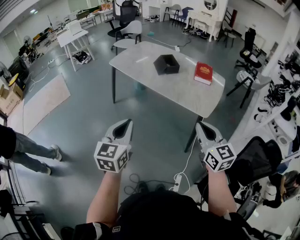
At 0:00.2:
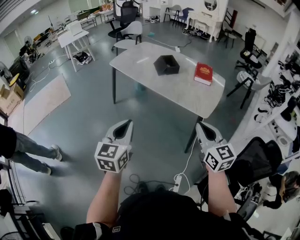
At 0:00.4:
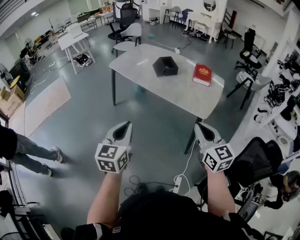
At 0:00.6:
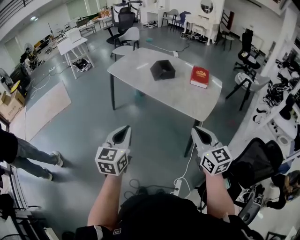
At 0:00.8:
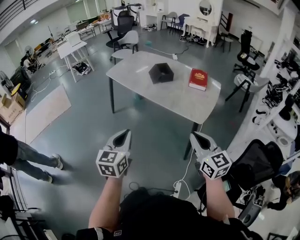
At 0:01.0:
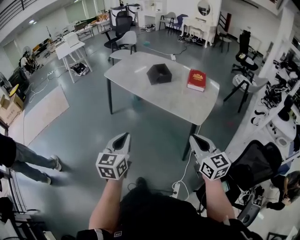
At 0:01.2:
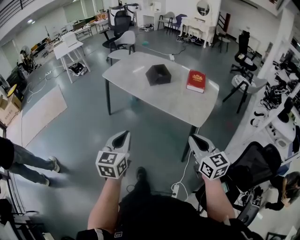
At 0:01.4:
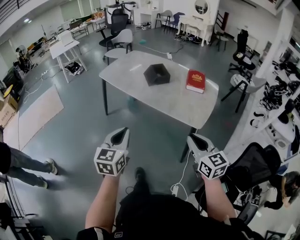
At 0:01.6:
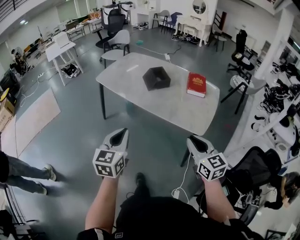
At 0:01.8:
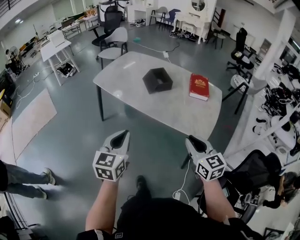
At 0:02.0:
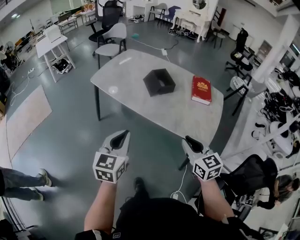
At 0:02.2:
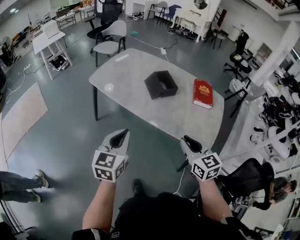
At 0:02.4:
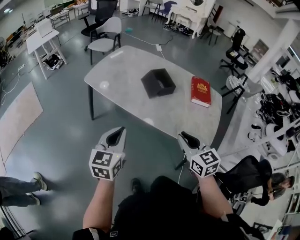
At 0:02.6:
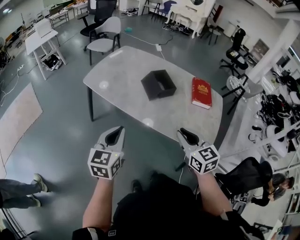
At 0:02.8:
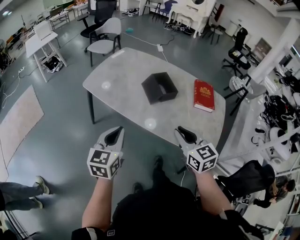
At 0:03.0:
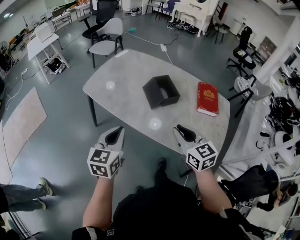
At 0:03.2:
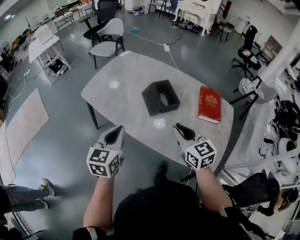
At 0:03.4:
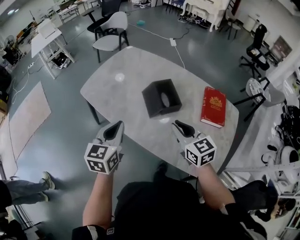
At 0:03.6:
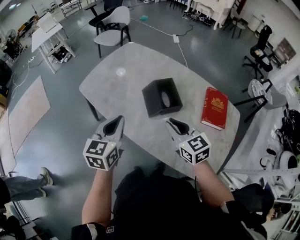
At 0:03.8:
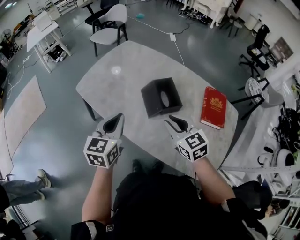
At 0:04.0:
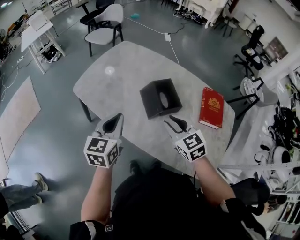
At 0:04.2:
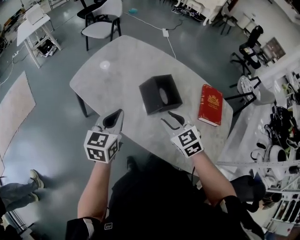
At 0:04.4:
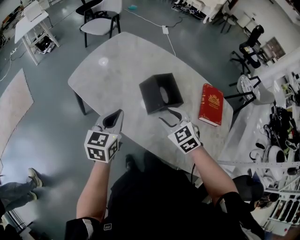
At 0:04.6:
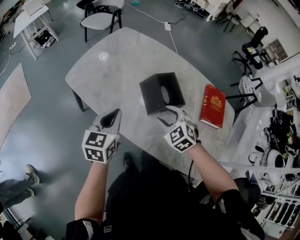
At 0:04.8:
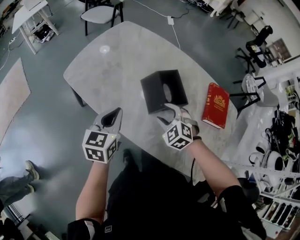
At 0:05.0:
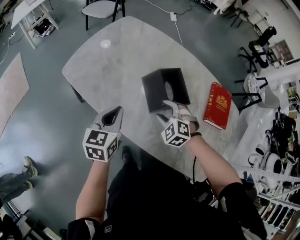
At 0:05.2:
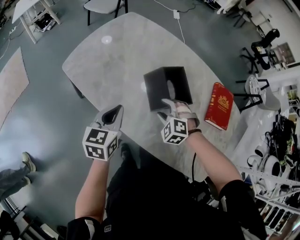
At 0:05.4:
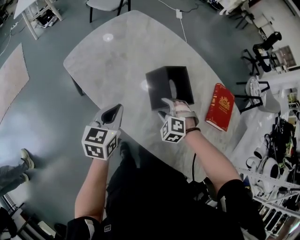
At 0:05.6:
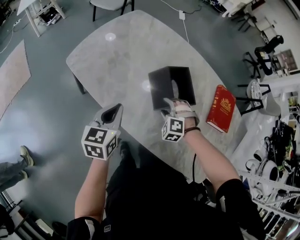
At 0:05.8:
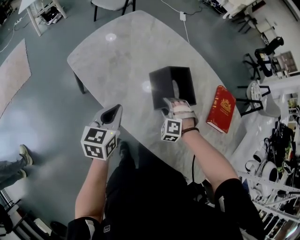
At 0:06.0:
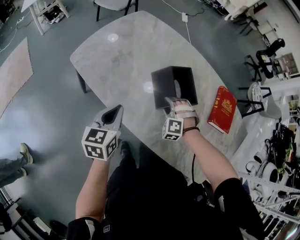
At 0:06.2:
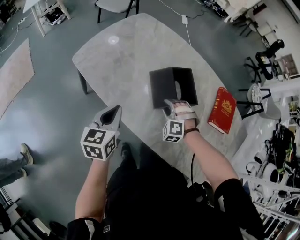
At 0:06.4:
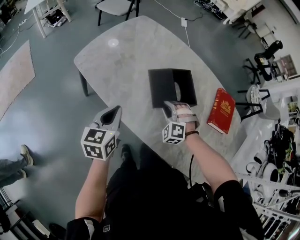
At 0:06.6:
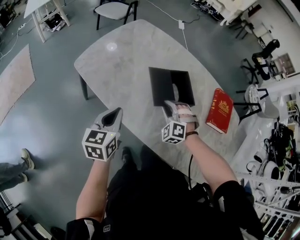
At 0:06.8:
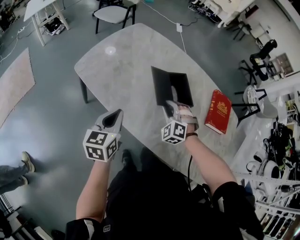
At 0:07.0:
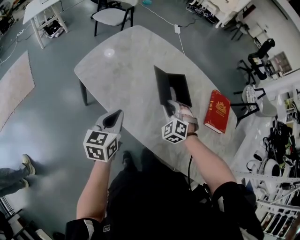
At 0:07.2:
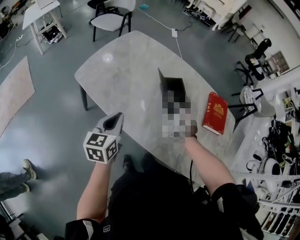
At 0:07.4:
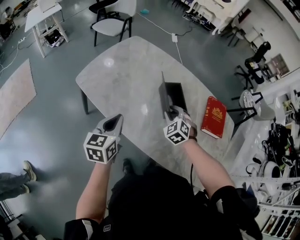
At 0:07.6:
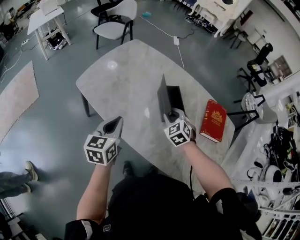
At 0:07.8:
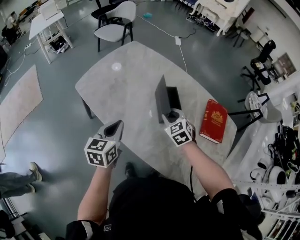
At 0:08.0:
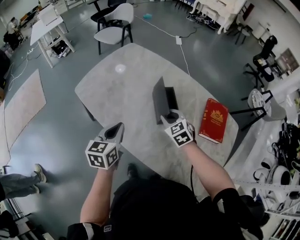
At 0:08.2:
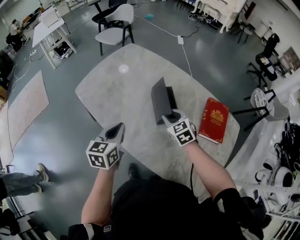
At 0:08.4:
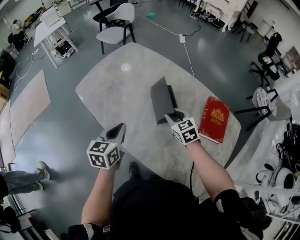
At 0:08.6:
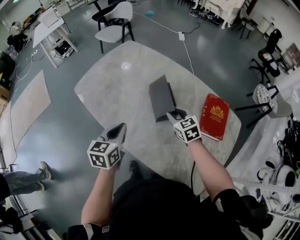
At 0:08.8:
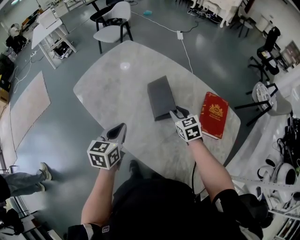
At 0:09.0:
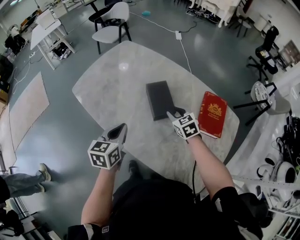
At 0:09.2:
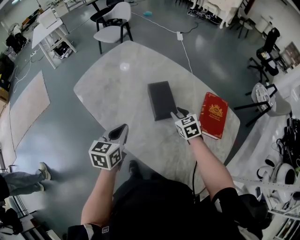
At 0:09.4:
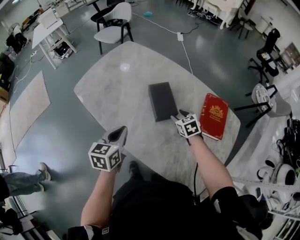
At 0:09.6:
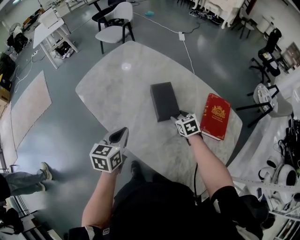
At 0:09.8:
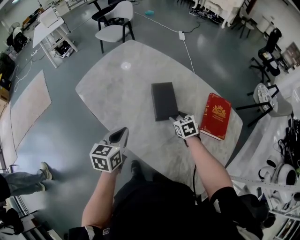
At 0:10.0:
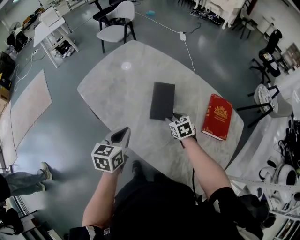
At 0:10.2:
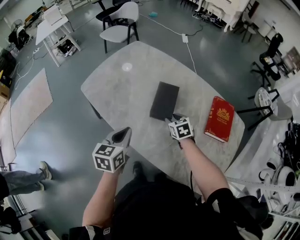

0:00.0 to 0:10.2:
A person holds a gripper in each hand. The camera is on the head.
0:00.0 to 0:01.4: The left gripper is displaced forward by some 10 cm. The right gripper changes place by roughly 10 cm.
0:01.4 to 0:03.0: The pair of grippers is taken forward, about 40 cm.
0:03.0 to 0:04.4: The left gripper heads forward, covering some 20 cm. The right gripper moves forward and downward, approximately 25 cm, swivels about 30 degrees, and opens its fingers.
0:04.4 to 0:05.8: The right gripper shifts approximately 20 cm downward and forward, and twists approximately 50 degrees counterclockwise, seen from behind. Meanwhile the left gripper heads downward, covering approximately 10 cm.
0:05.8 to 0:07.2: The right gripper travels upward by about 10 cm, rotates roughly 40 degrees, and closes its fingers. Meanwhile the left gripper goes about 5 cm upward.
0:07.2 to 0:08.8: The two grippers go some 15 cm to the right. The right gripper swivels some 40 degrees.
0:08.8 to 0:10.2: The left gripper ends up about 5 cm from where it was, while the right gripper travels to the left and downward by some 10 cm.

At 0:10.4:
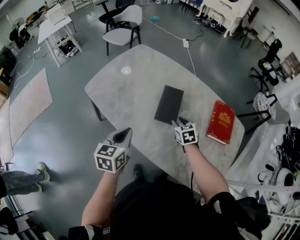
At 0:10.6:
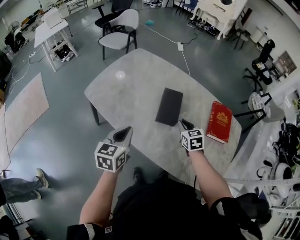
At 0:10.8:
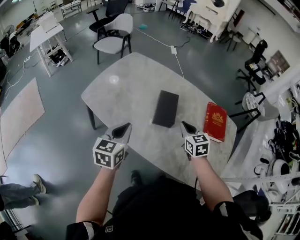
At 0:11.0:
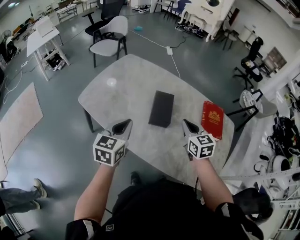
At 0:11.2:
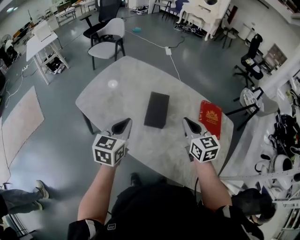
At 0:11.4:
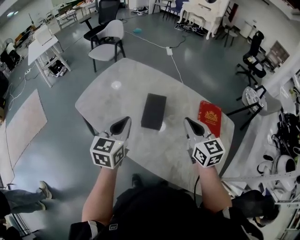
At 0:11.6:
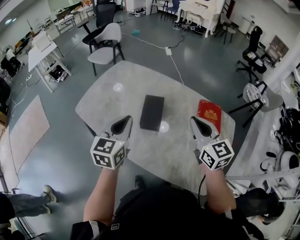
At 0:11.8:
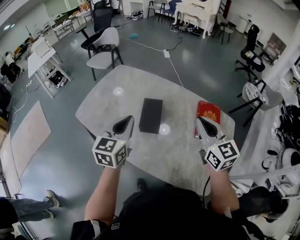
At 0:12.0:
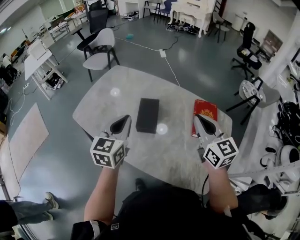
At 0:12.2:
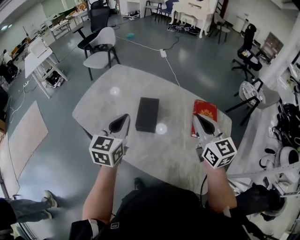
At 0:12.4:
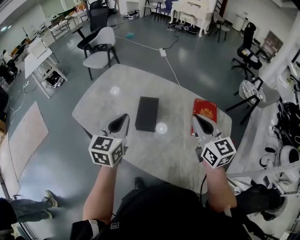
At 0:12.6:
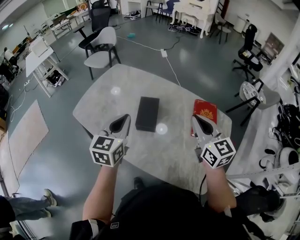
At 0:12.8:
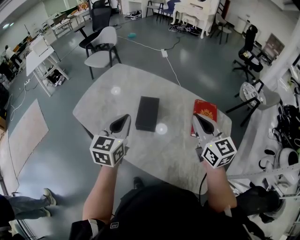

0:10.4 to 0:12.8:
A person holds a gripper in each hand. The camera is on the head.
0:10.4 to 0:11.6: The left gripper is displaced upward, to the right and forward by approximately 15 cm. Meanwhile the right gripper is displaced upward by about 30 cm, tilts its fingers some 40 degrees upward, and closes.
0:11.6 to 0:12.8: The grippers make only small movements.

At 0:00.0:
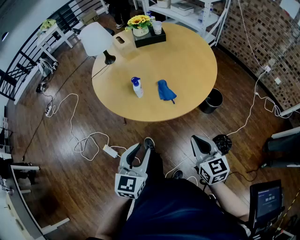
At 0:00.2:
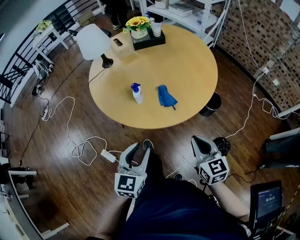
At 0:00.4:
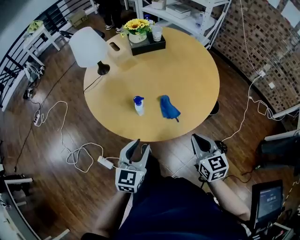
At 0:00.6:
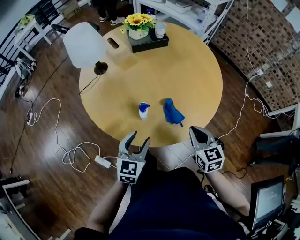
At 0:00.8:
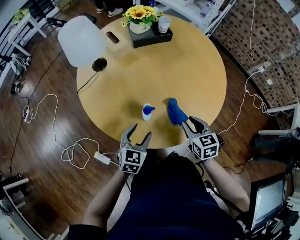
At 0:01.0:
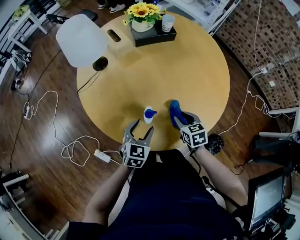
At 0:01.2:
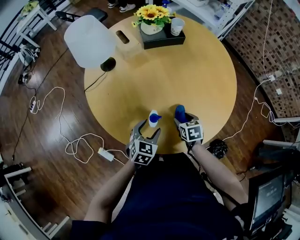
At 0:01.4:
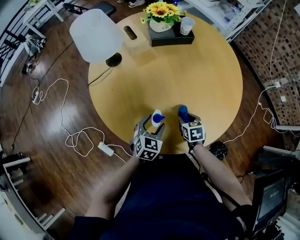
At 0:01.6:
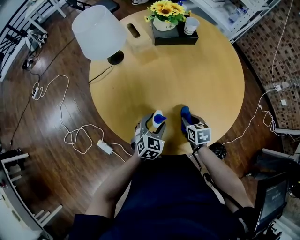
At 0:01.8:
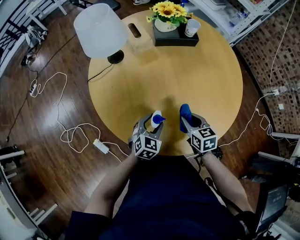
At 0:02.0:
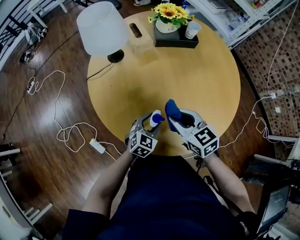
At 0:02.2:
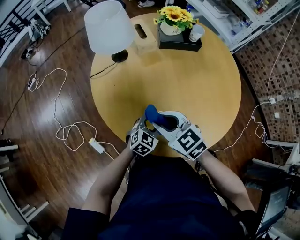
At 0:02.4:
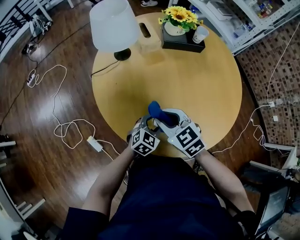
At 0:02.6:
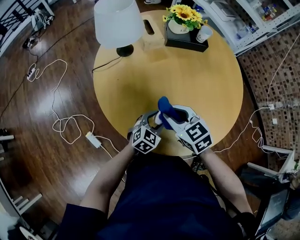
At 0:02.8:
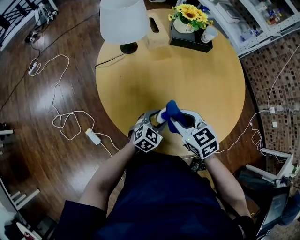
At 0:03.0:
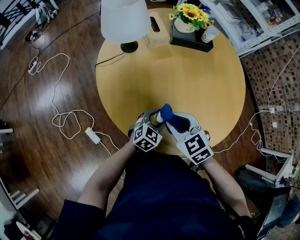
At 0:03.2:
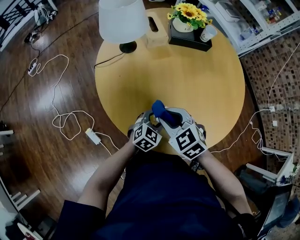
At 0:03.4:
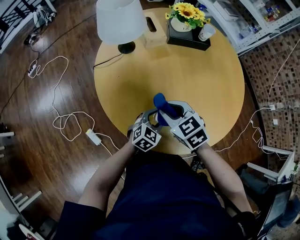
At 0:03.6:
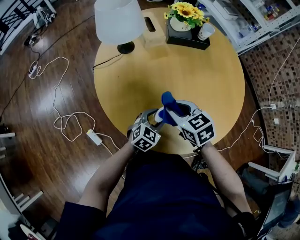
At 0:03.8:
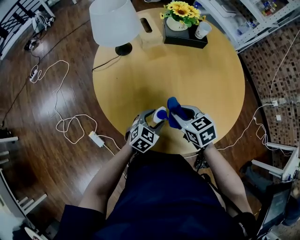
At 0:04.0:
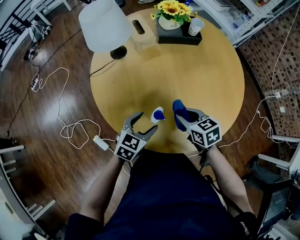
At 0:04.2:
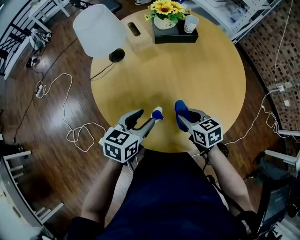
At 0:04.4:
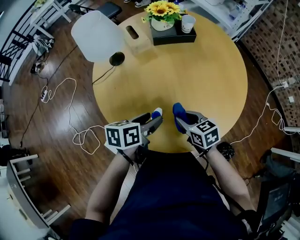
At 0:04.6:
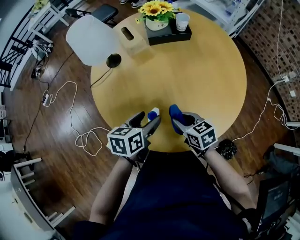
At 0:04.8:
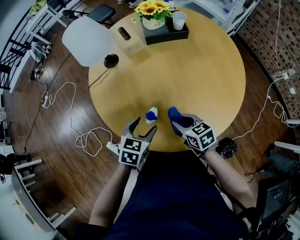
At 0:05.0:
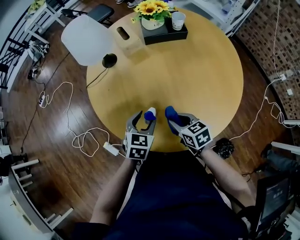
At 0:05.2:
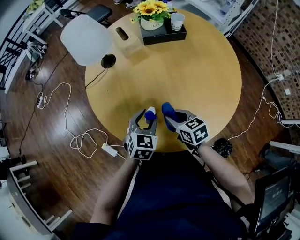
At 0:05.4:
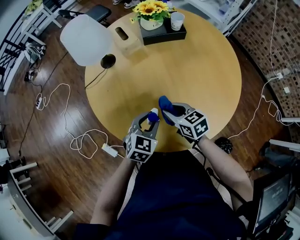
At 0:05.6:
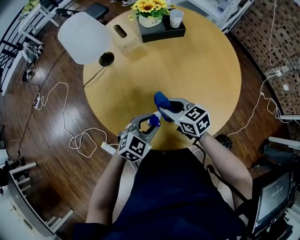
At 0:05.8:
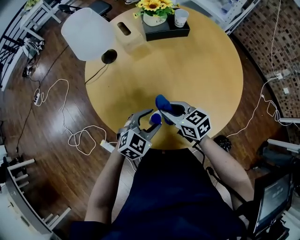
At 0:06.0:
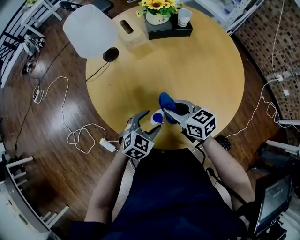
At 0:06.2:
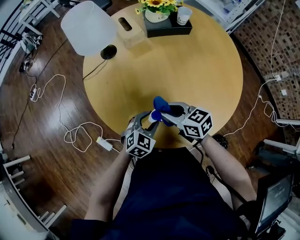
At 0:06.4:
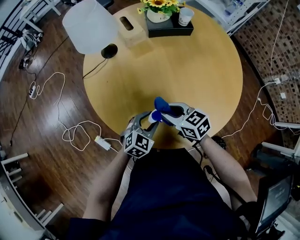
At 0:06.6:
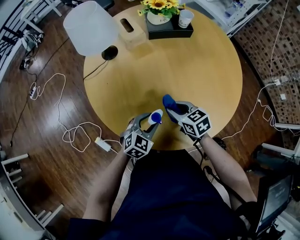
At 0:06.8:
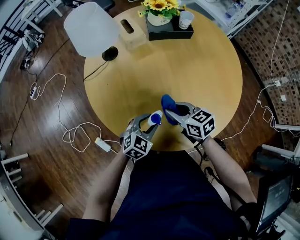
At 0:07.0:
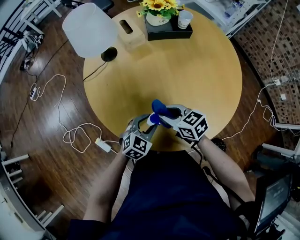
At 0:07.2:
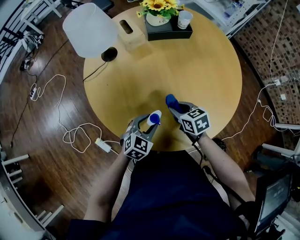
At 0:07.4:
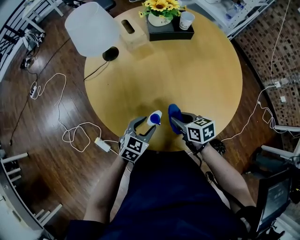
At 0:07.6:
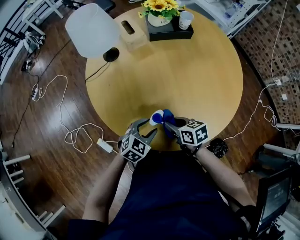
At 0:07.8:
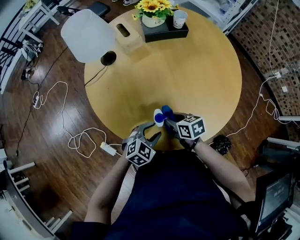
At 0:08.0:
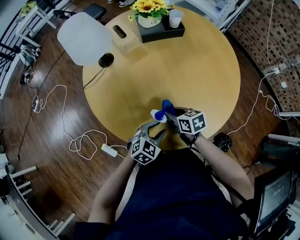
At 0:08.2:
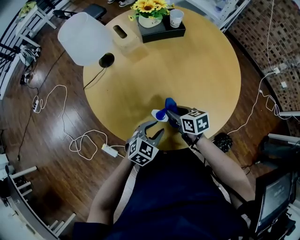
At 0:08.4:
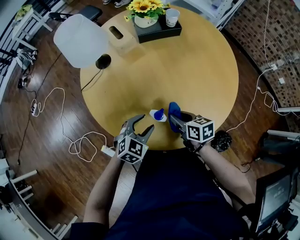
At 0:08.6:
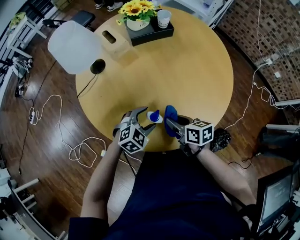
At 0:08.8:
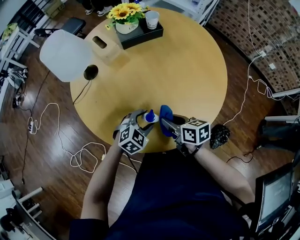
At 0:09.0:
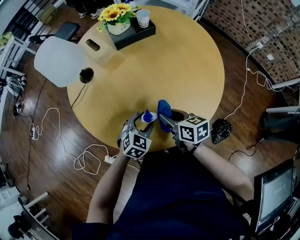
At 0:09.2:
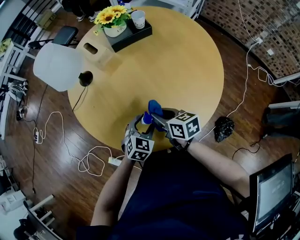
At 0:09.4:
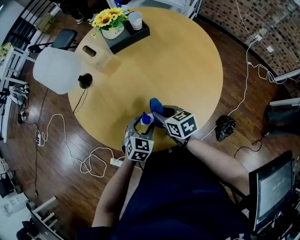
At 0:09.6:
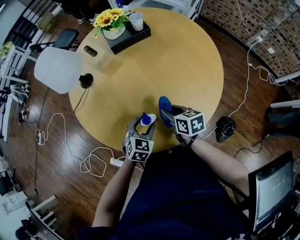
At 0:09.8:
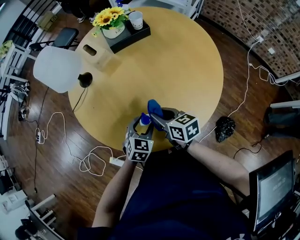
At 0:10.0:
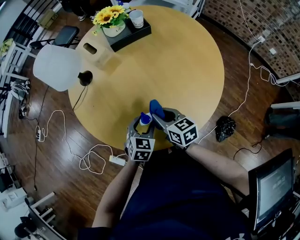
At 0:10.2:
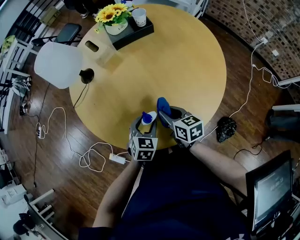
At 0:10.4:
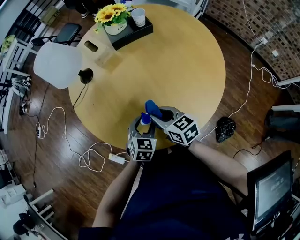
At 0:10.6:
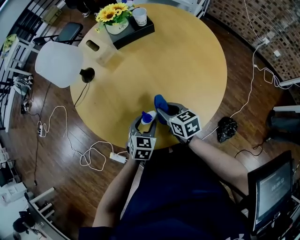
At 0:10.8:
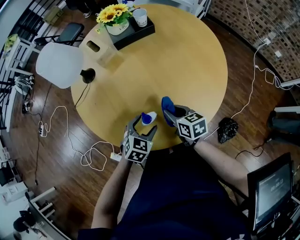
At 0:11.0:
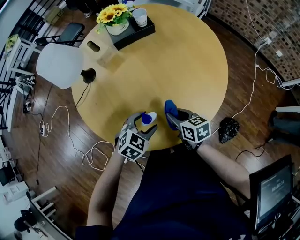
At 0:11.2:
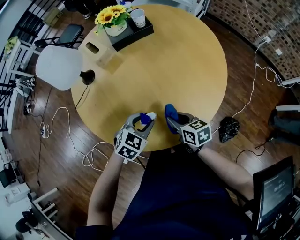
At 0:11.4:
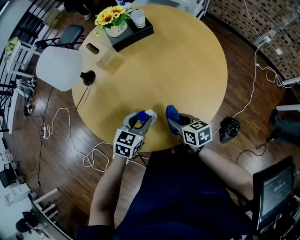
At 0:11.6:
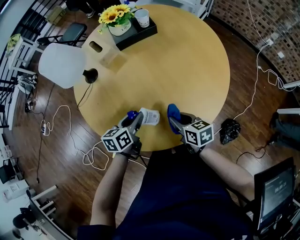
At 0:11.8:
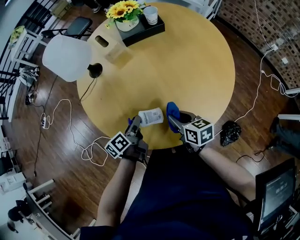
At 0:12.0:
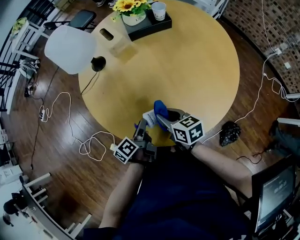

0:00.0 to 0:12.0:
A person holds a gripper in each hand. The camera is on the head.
0:00.0 to 0:01.6: Both grippers move forward and downward, about 40 cm. The left gripper swivels roughly 20 degrees, and opens. Meanwhile the right gripper tips its fingers downward by some 30 degrees, and opens up.
0:01.6 to 0:03.0: The right gripper goes about 25 cm upward and to the left, and twists approximately 40 degrees counterclockwise, seen from behind.
0:03.0 to 0:04.4: The right gripper is displaced to the right and downward by some 10 cm, and turns by about 30 degrees, while the left gripper shifts some 15 cm upward, and twists approximately 50 degrees counterclockwise, seen from behind.
0:04.4 to 0:06.0: The right gripper shifts by roughly 5 cm, while the left gripper shifts roughly 10 cm downward, and twists some 60 degrees clockwise, seen from behind.
0:06.0 to 0:07.6: The right gripper travels downward and backward by approximately 10 cm, and changes its angle by about 20 degrees.
0:07.6 to 0:09.0: The left gripper moves about 5 cm; the right gripper travels upward by some 5 cm, and turns by approximately 20 degrees.
0:09.0 to 0:10.4: The left gripper turns by approximately 20 degrees.
0:10.4 to 0:12.0: The left gripper heads to the left, covering roughly 10 cm, and rotates around the line of its fingers by some 90 degrees, counterclockwise from behind; the right gripper goes to the right and returns, some 5 cm each way.
